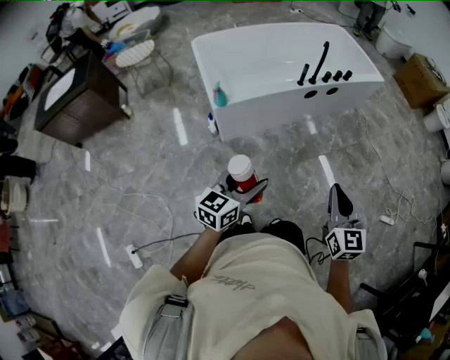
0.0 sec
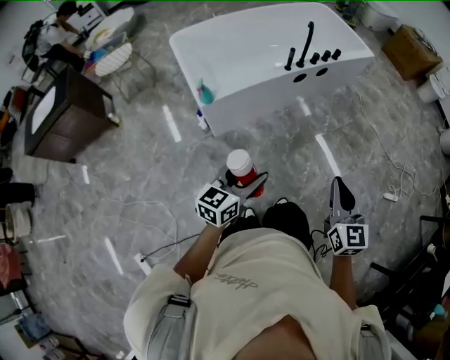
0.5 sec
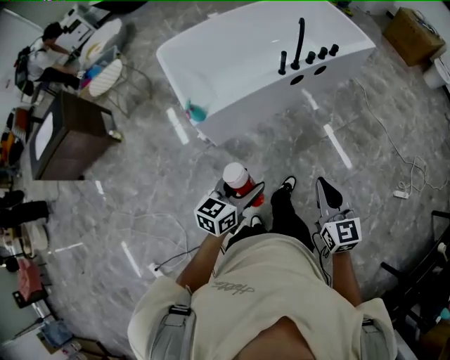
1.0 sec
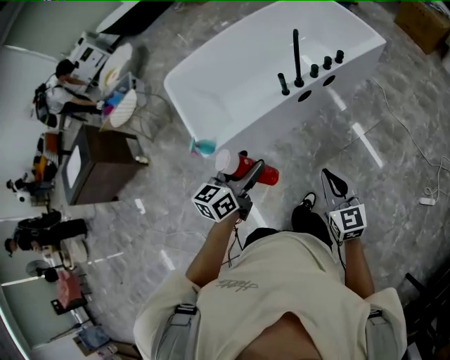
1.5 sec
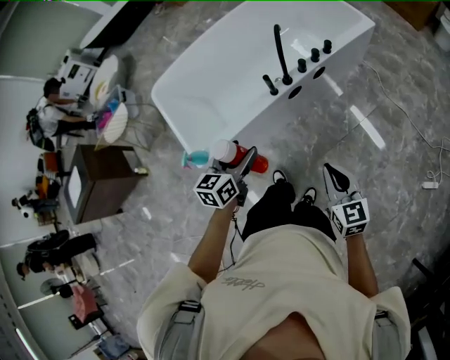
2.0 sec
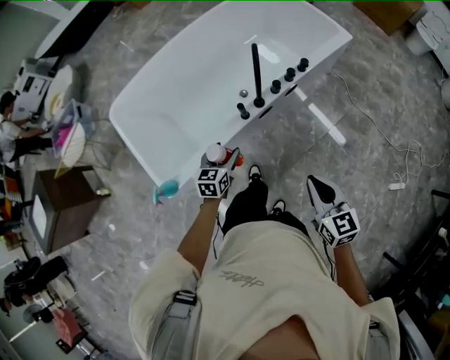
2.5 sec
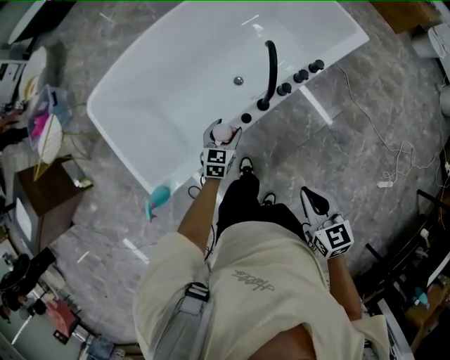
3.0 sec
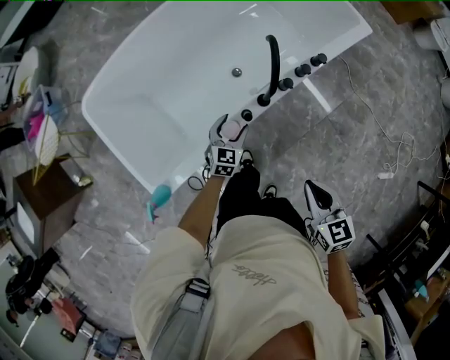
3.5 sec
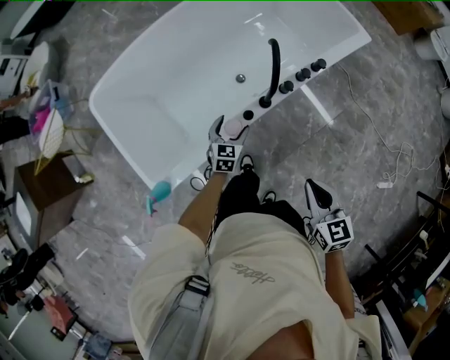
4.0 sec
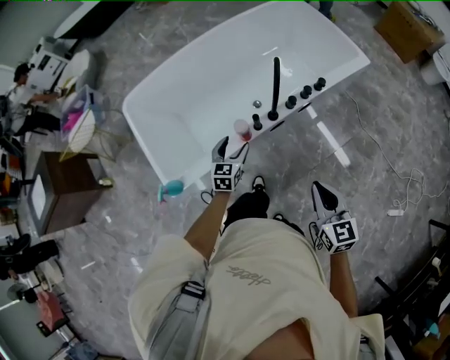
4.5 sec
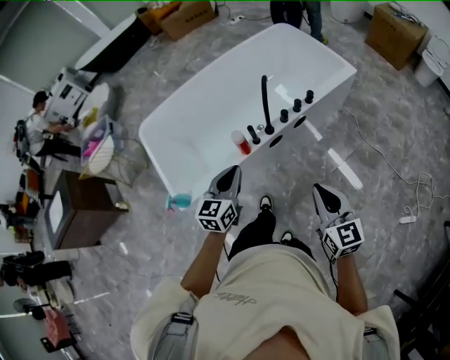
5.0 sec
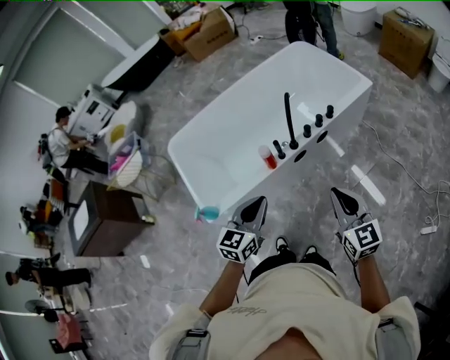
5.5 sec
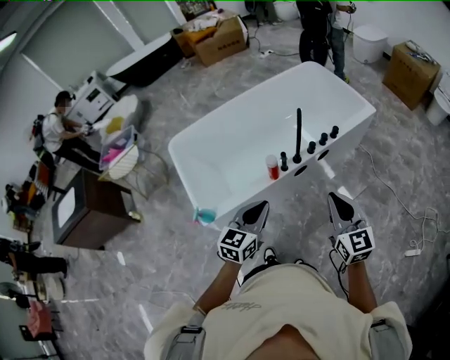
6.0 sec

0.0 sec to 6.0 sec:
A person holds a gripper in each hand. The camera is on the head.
0.0 sec to 2.0 sec: Both grippers move forward, roughly 35 cm.
2.0 sec to 4.0 sec: The left gripper is displaced forward and downward by roughly 35 cm, and swivels about 20 degrees, while the right gripper goes some 15 cm forward.
4.0 sec to 6.0 sec: The right gripper is displaced upward and backward by some 15 cm, and changes its angle by roughly 30 degrees. The left gripper moves upward and backward, approximately 40 cm, rotates about 20 degrees, and closes up.

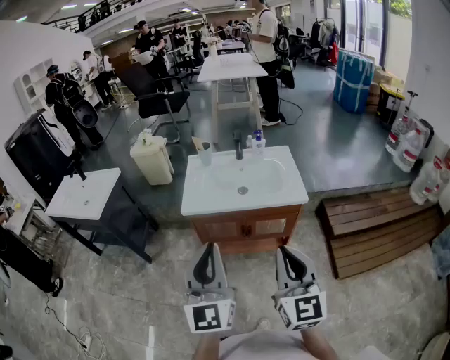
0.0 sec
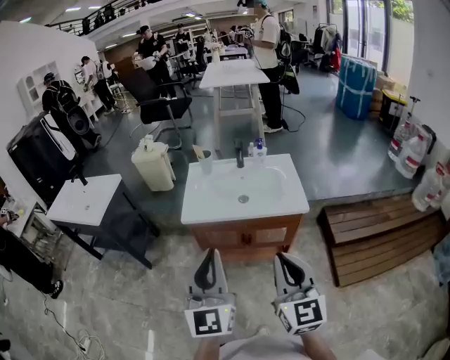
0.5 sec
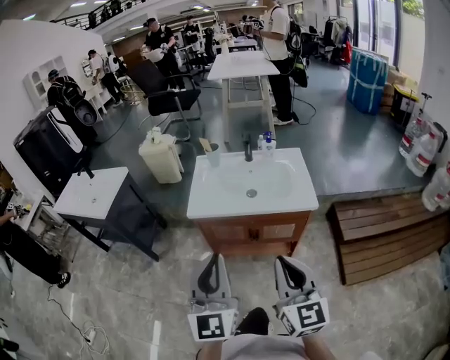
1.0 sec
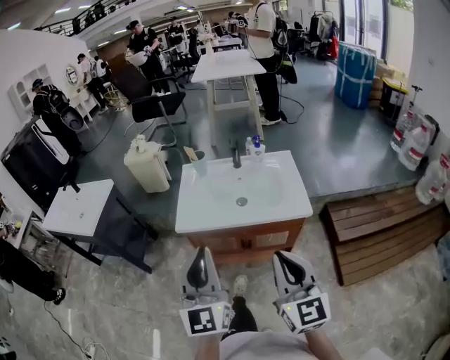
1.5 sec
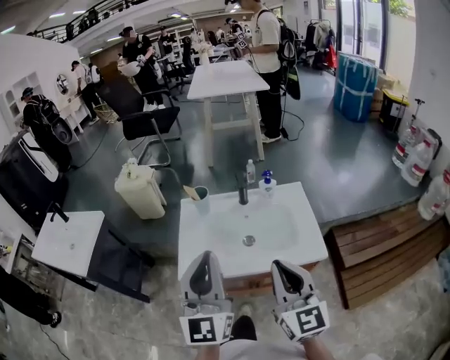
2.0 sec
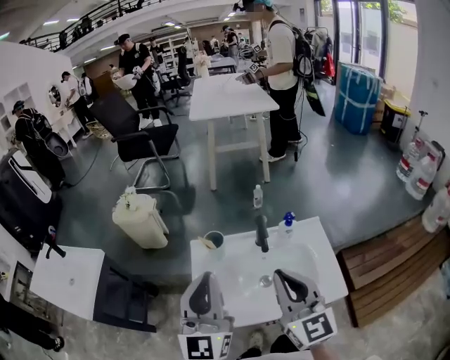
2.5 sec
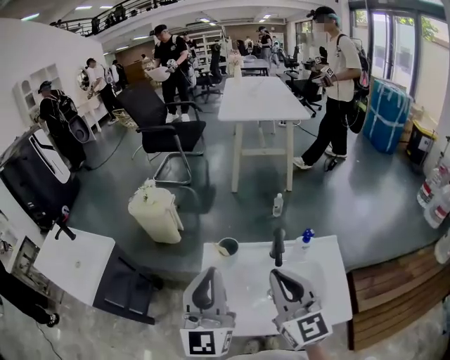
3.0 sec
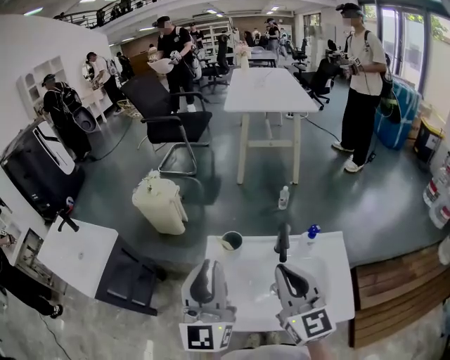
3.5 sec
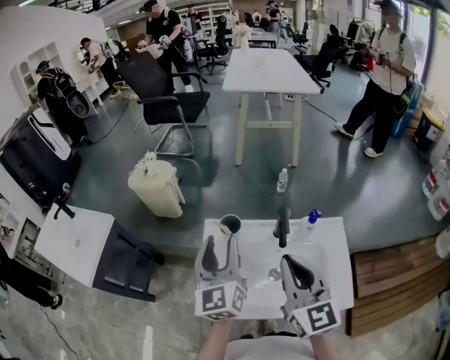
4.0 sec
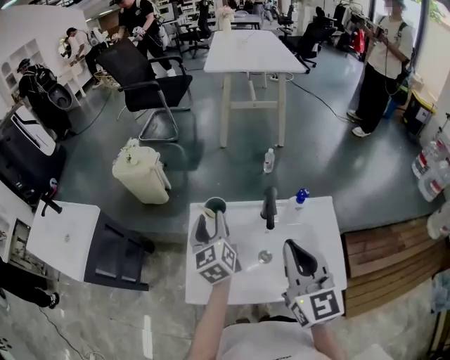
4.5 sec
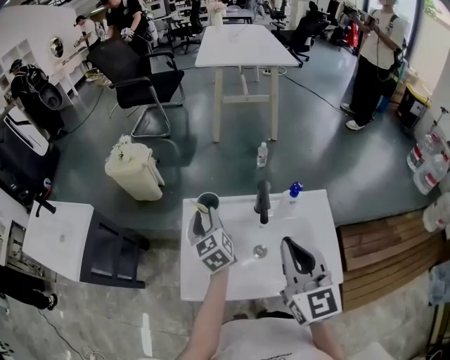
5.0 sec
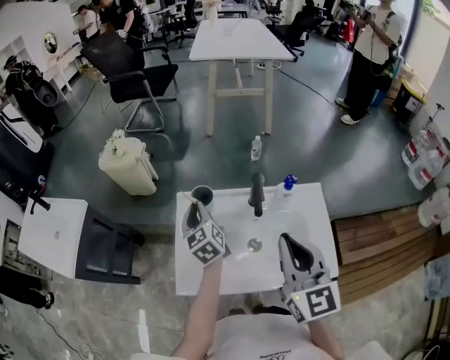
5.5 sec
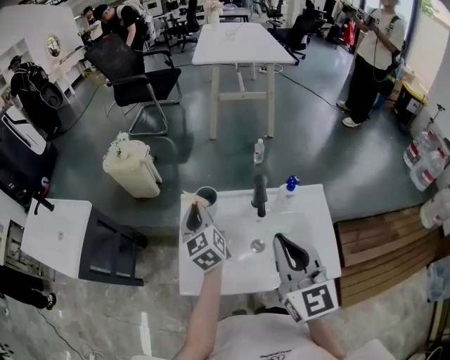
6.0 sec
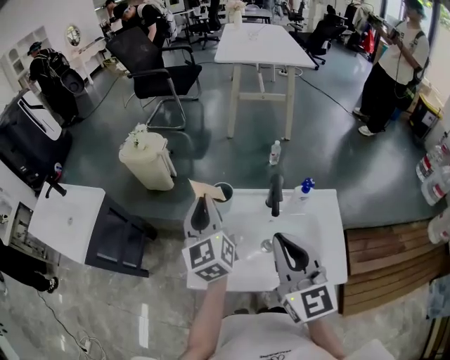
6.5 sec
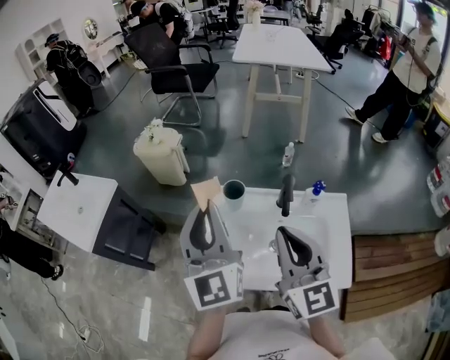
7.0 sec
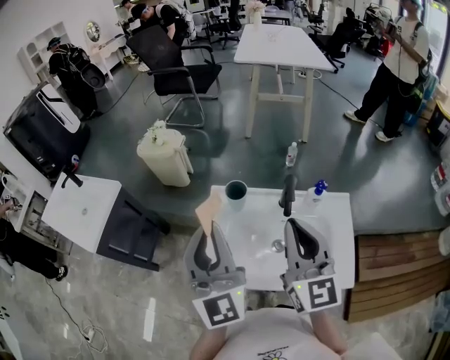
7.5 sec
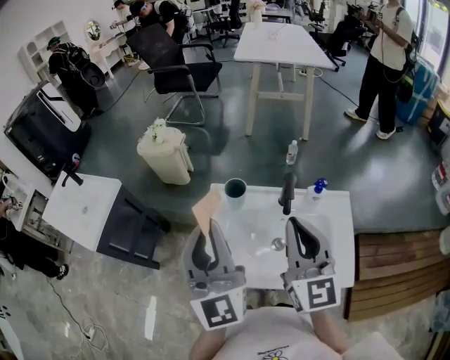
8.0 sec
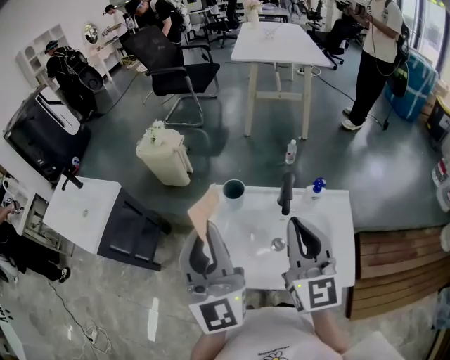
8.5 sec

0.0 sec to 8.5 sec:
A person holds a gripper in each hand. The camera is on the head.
0.0 sec to 2.0 sec: The grippers both shift forward by approximately 30 cm.
2.0 sec to 4.0 sec: Both grippers travel together forward, approximately 25 cm. The left gripper swivels some 20 degrees, and opens.
4.0 sec to 6.5 sec: The left gripper goes downward and returns, approximately 15 cm each way, and closes.
6.5 sec to 8.5 sec: The left gripper heads backward and upward, covering about 15 cm, and turns by approximately 30 degrees.

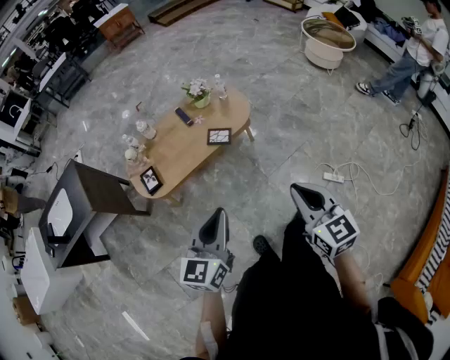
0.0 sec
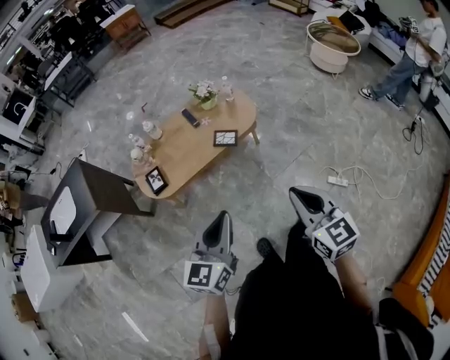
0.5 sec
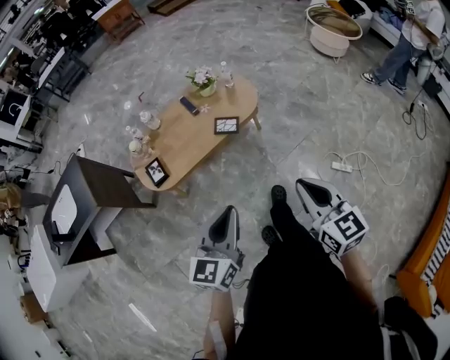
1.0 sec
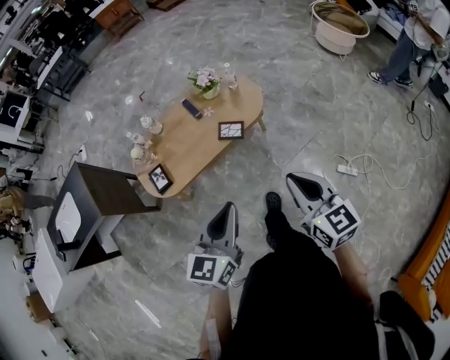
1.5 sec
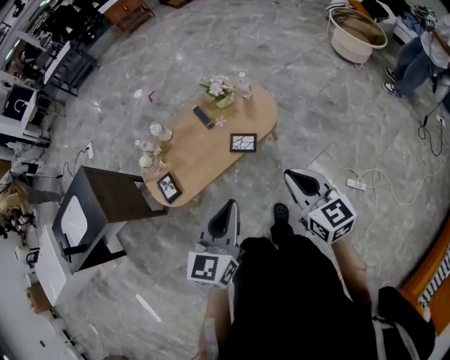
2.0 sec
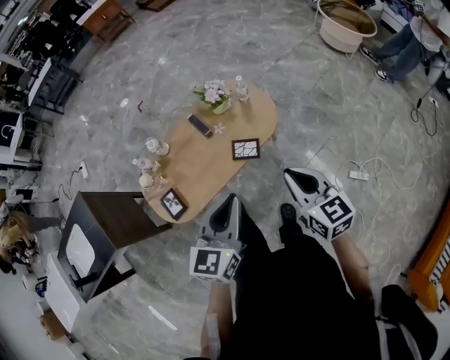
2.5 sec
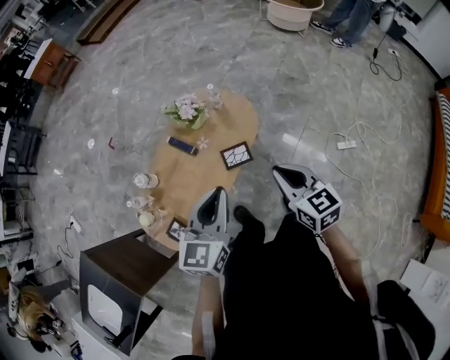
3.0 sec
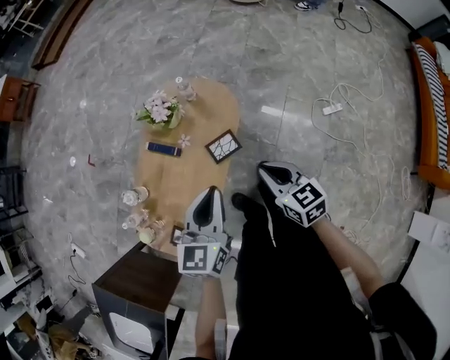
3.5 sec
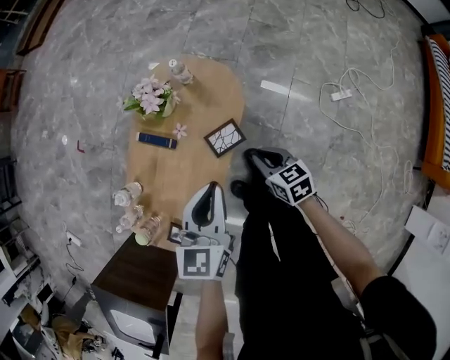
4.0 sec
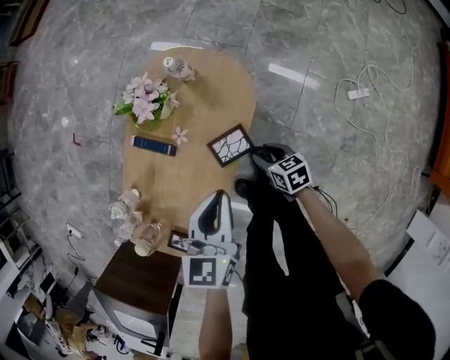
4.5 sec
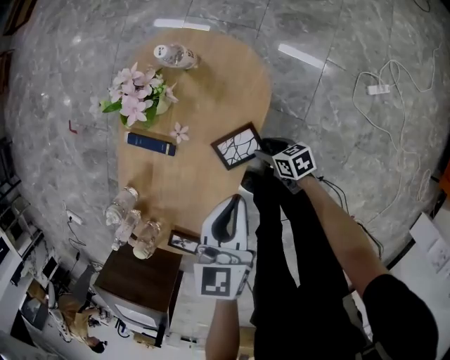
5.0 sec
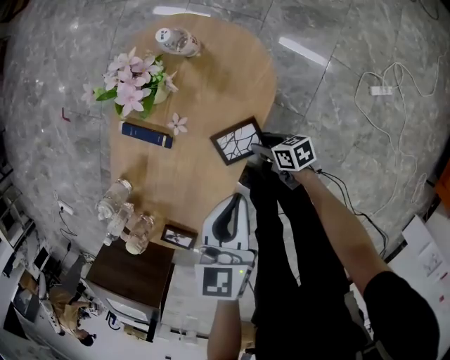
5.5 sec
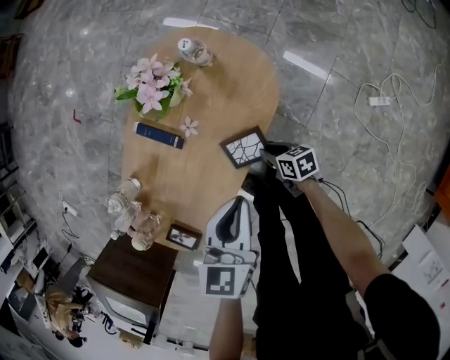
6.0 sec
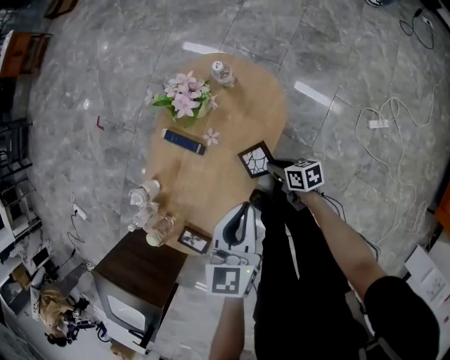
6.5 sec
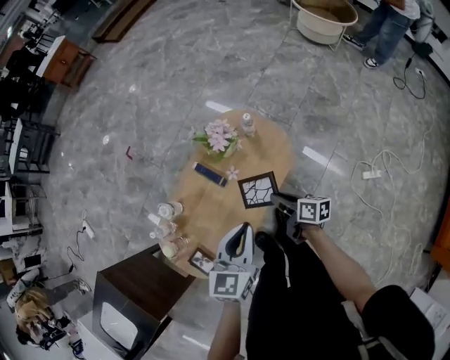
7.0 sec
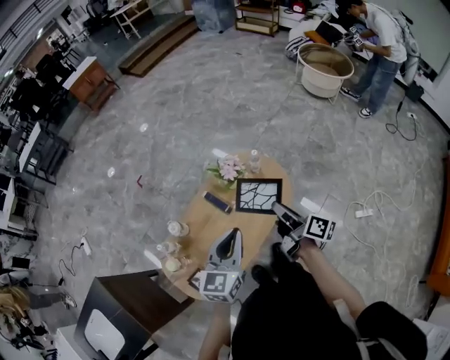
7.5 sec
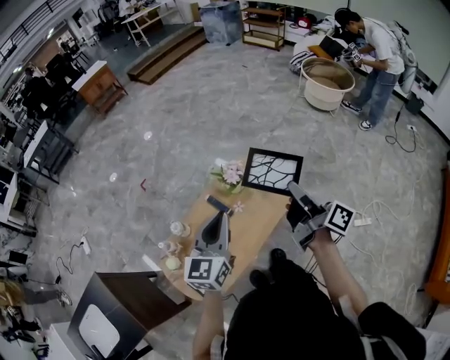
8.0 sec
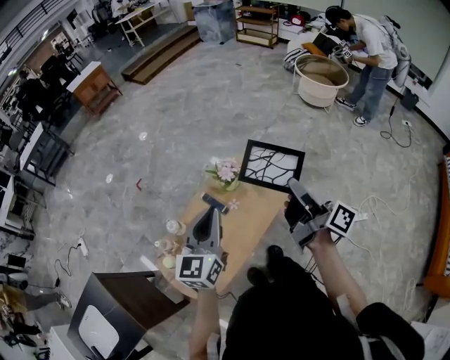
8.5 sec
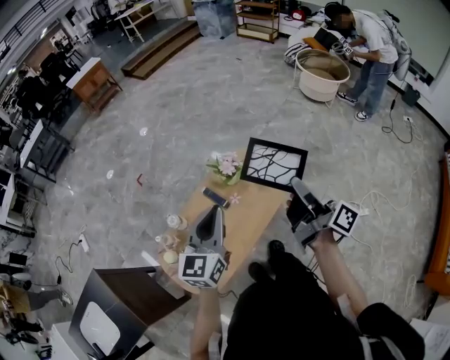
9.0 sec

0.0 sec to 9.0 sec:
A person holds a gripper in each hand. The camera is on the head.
0.0 sec to 2.0 sec: The grippers both shift forward by roughly 20 cm.
2.0 sec to 4.5 sec: The right gripper shifts approximately 50 cm downward, angles its fingers downward, by approximately 30 degrees, and opens its fingers, while the left gripper ends up roughly 40 cm from where it was, and changes its angle by about 30 degrees.
4.5 sec to 7.0 sec: The left gripper moves upward and to the left, roughly 15 cm. Meanwhile the right gripper moves upward, roughly 20 cm, and changes its angle by about 30 degrees.
7.0 sec to 9.0 sec: The left gripper heads upward and to the left, covering about 20 cm; the right gripper is displaced upward by about 35 cm, and angles its fingers upward, by some 40 degrees.

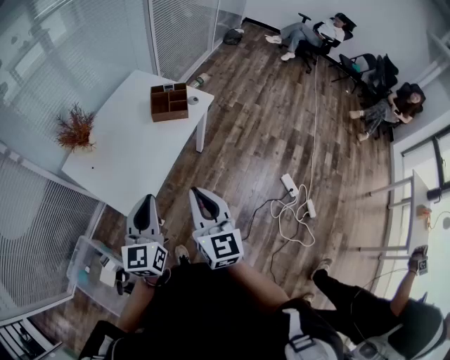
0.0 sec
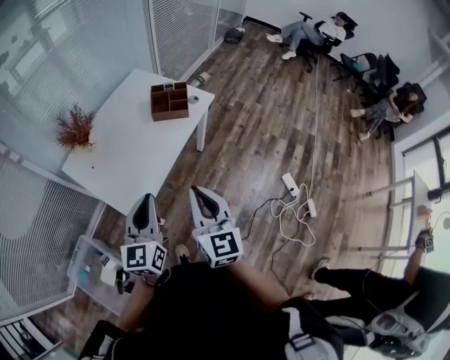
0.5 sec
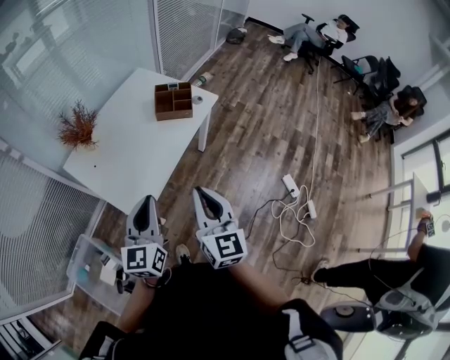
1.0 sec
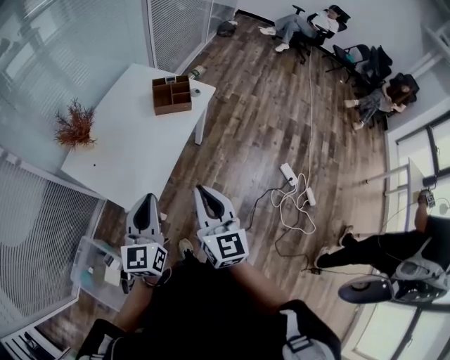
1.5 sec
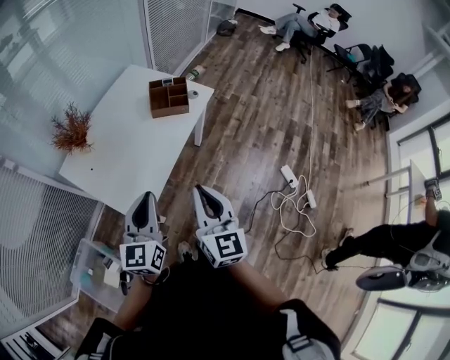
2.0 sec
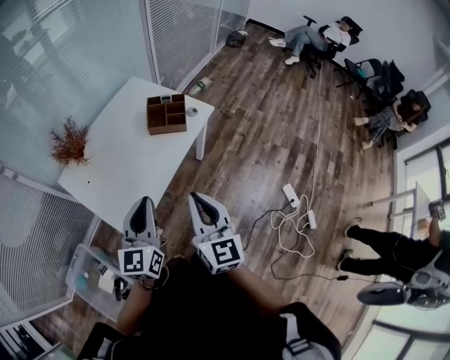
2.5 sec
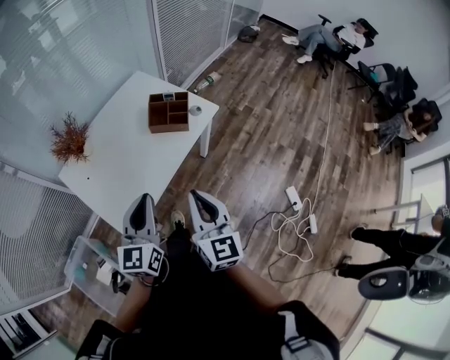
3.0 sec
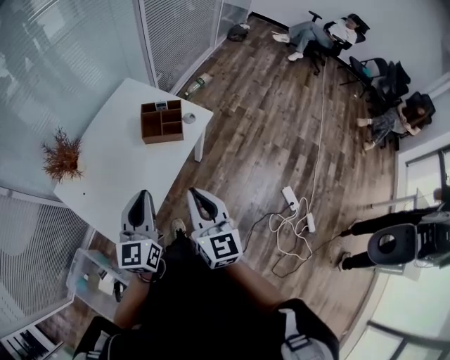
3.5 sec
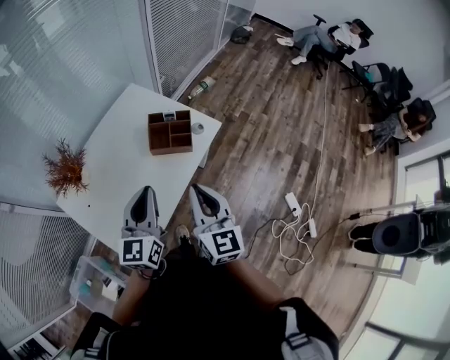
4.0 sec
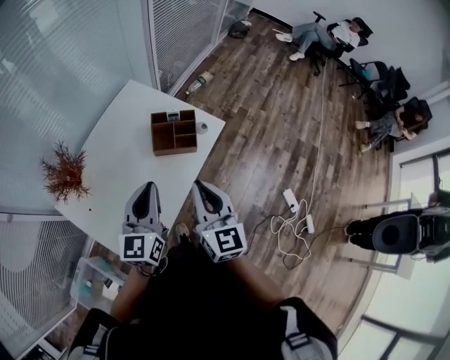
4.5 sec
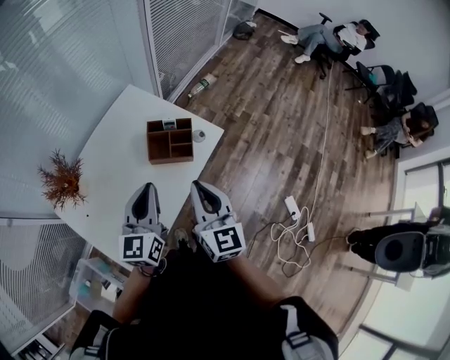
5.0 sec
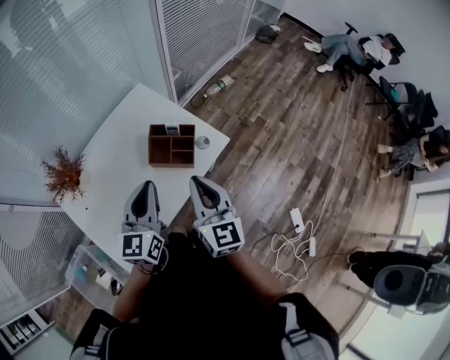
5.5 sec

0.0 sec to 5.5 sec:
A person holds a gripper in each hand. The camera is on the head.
0.0 sec to 2.0 sec: The grippers stay close to where they were, moving slightly.
2.0 sec to 3.5 sec: Both grippers move forward and to the right, some 15 cm.
3.5 sec to 5.5 sec: The grippers both shift forward by approximately 20 cm.
